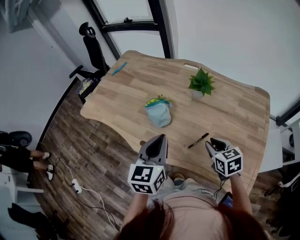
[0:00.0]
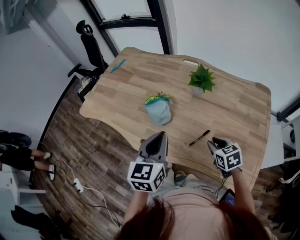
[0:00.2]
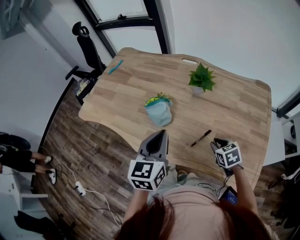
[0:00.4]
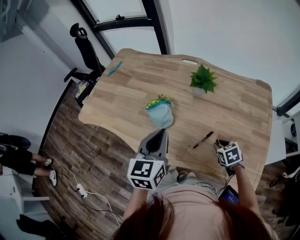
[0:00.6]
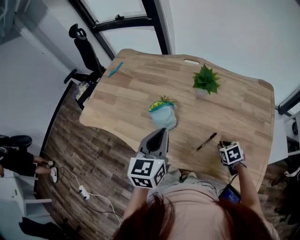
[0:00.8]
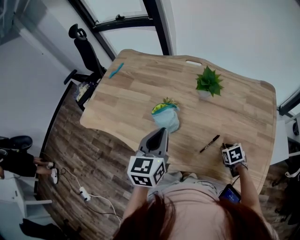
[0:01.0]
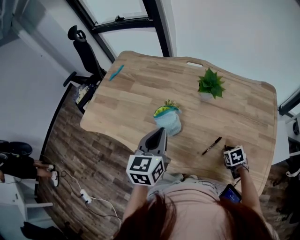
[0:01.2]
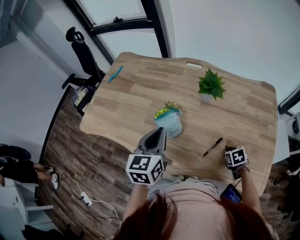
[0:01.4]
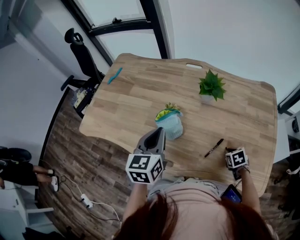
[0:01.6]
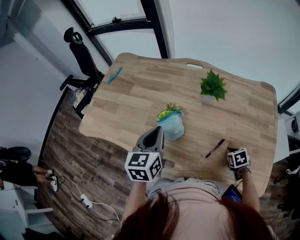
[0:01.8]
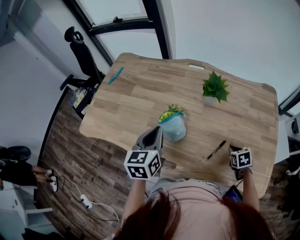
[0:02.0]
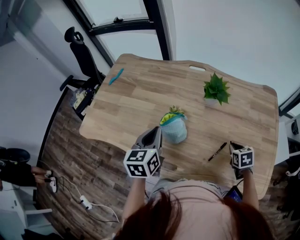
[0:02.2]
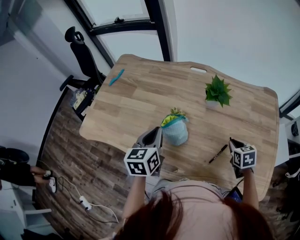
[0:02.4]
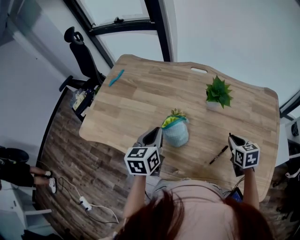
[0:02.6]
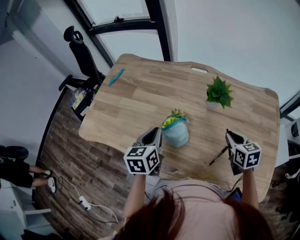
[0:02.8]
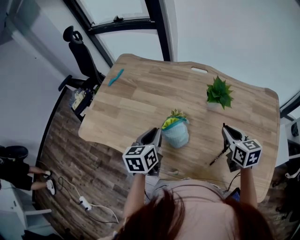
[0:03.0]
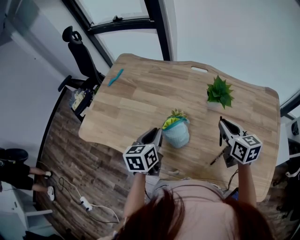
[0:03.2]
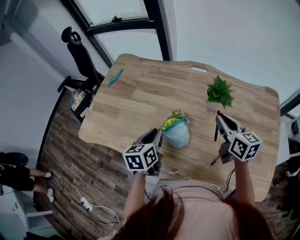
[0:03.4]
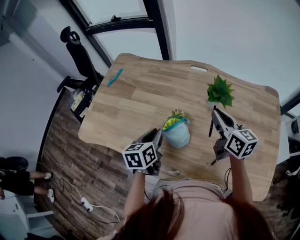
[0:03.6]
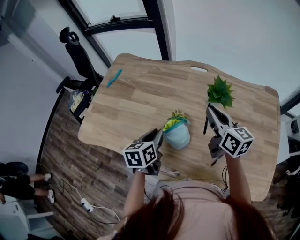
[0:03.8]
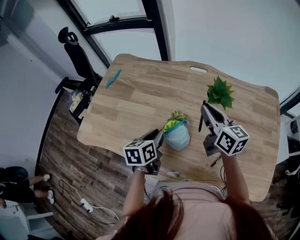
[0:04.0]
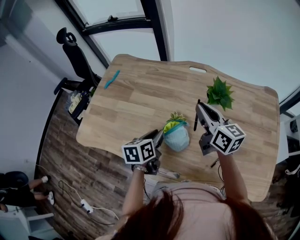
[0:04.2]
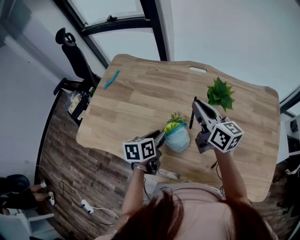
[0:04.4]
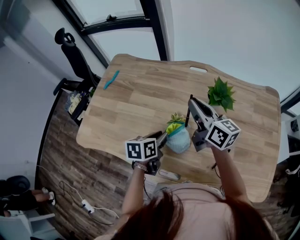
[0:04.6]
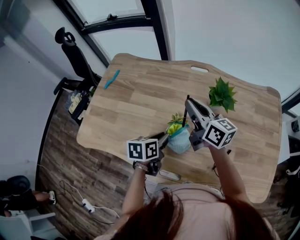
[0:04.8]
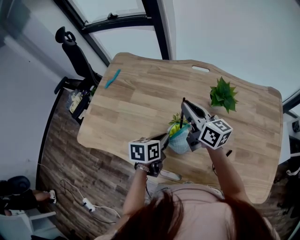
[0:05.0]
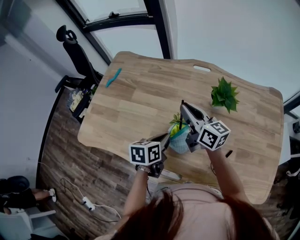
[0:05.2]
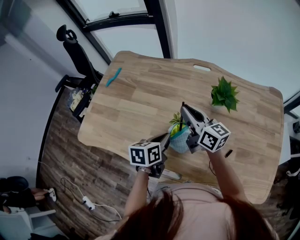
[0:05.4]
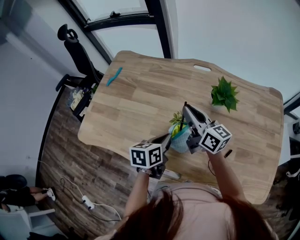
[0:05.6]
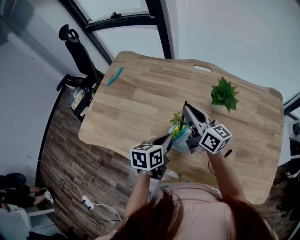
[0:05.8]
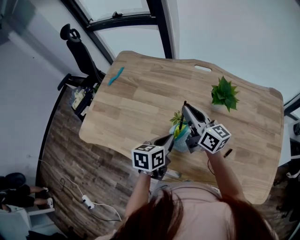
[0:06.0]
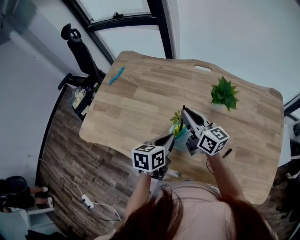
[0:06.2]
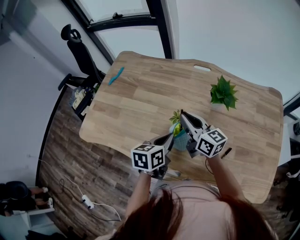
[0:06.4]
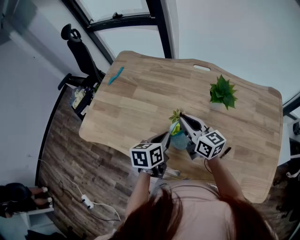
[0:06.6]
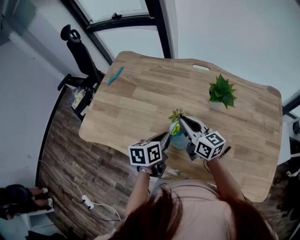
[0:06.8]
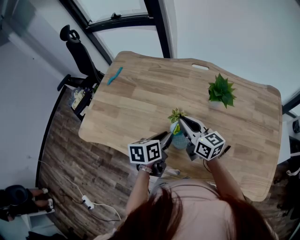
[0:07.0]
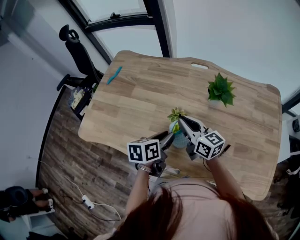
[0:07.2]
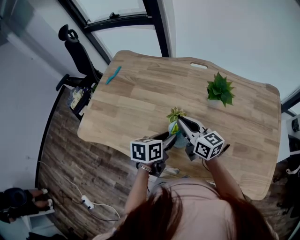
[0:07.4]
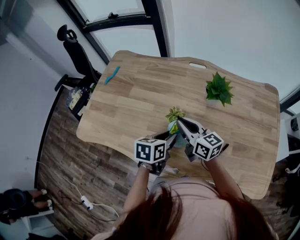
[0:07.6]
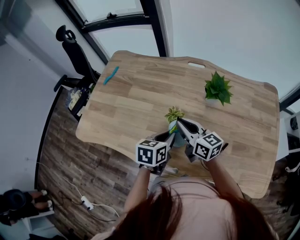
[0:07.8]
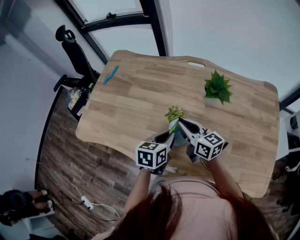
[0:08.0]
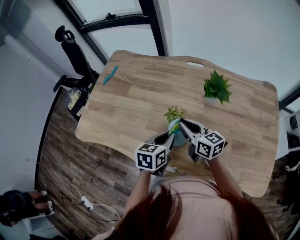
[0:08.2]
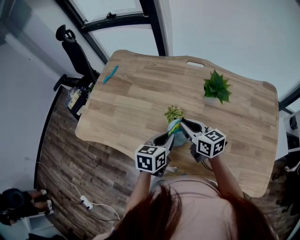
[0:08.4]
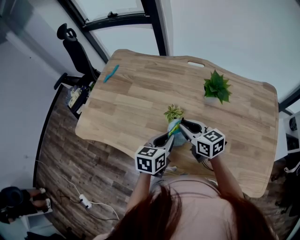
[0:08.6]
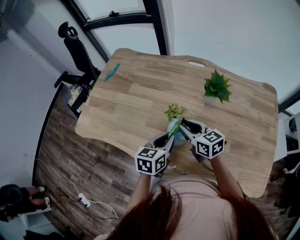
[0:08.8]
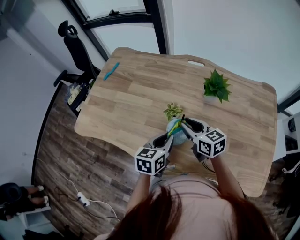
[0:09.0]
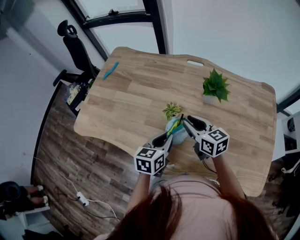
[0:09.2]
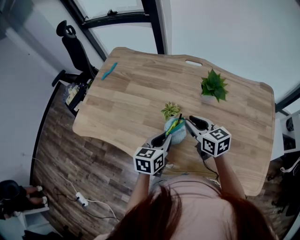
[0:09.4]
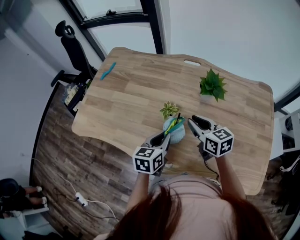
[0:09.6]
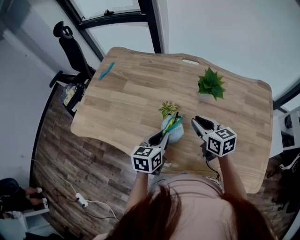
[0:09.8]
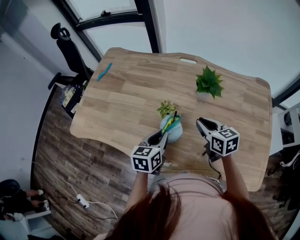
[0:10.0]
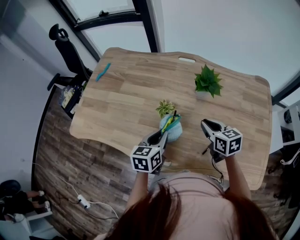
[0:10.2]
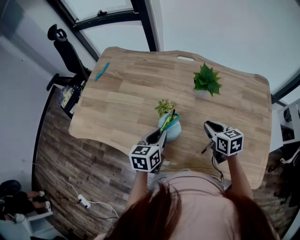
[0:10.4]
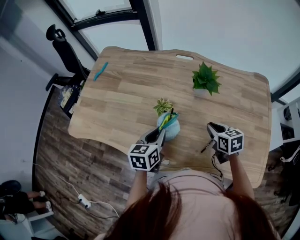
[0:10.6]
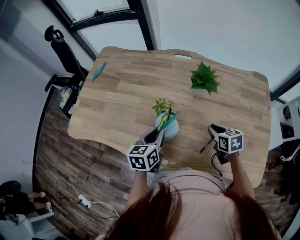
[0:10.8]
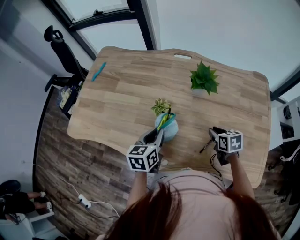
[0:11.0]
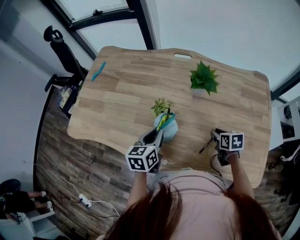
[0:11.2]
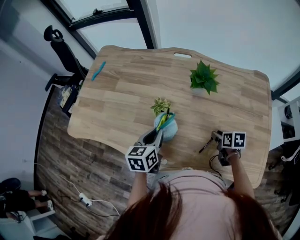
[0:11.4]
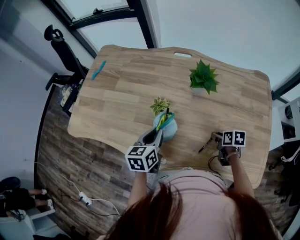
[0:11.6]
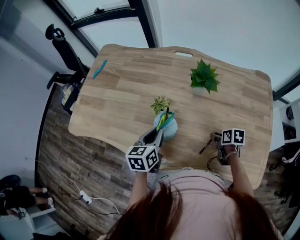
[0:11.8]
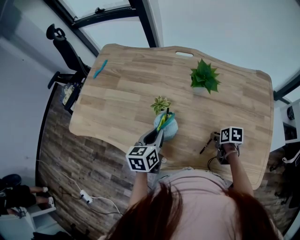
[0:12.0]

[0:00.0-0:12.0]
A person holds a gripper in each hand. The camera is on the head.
0:00.0 to 0:01.6: The right gripper travels downward by some 15 cm, and tips its fingers downward by approximately 30 degrees. Meanwhile the left gripper is displaced forward and to the left by about 15 cm.
0:01.6 to 0:03.0: The right gripper heads upward, forward and to the left, covering roughly 25 cm, and tips its fingers upward by some 40 degrees. The left gripper goes approximately 10 cm downward, to the left and forward.
0:03.0 to 0:04.4: The right gripper goes some 20 cm to the left, forward and upward, and turns by approximately 30 degrees; the left gripper shifts approximately 5 cm downward.
0:04.4 to 0:06.0: The right gripper moves approximately 5 cm, while the left gripper closes its fingers.
0:06.0 to 0:07.6: The right gripper goes roughly 10 cm backward and downward; the left gripper opens up.
0:07.6 to 0:09.0: The grippers make only small movements.
0:09.0 to 0:10.4: The right gripper moves to the right, some 15 cm, and turns by about 20 degrees.
0:10.4 to 0:12.0: The right gripper shifts roughly 15 cm downward, to the right and backward, swivels roughly 40 degrees, and opens.

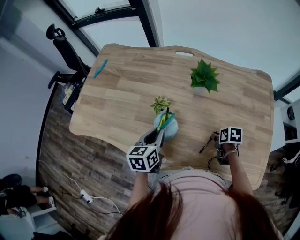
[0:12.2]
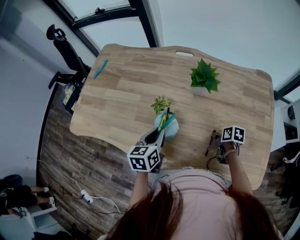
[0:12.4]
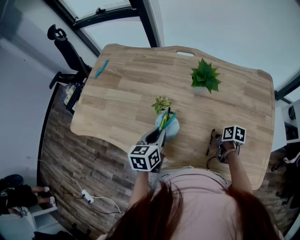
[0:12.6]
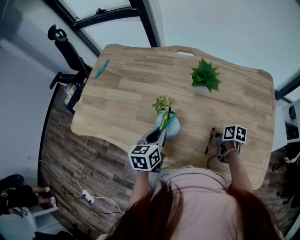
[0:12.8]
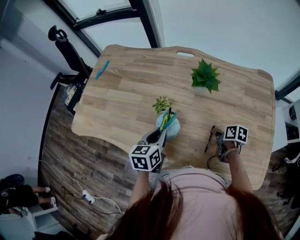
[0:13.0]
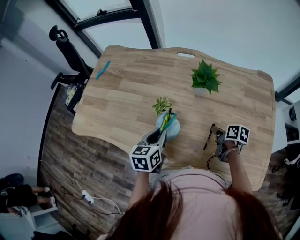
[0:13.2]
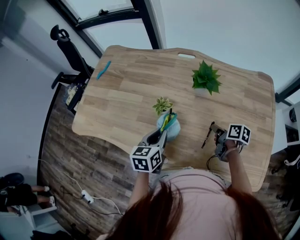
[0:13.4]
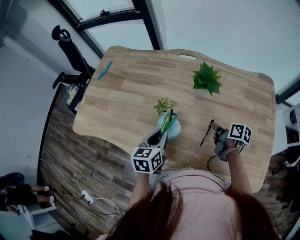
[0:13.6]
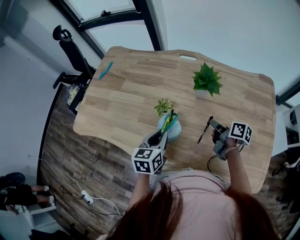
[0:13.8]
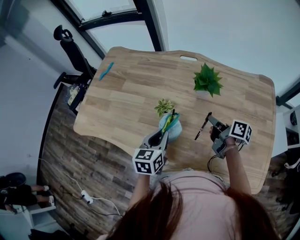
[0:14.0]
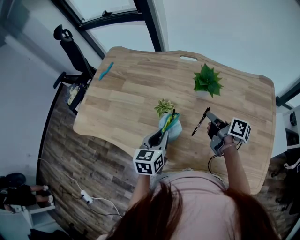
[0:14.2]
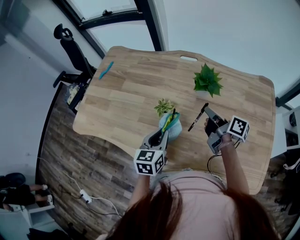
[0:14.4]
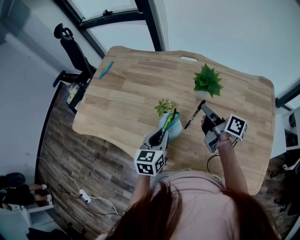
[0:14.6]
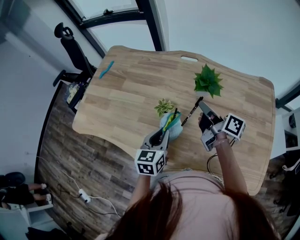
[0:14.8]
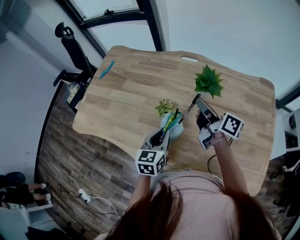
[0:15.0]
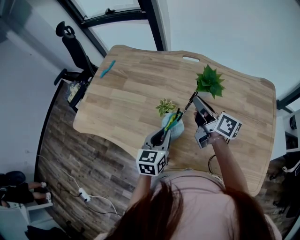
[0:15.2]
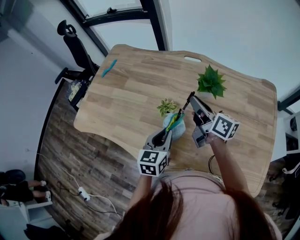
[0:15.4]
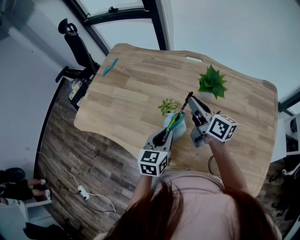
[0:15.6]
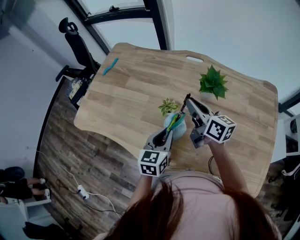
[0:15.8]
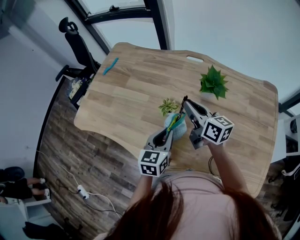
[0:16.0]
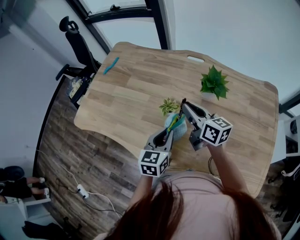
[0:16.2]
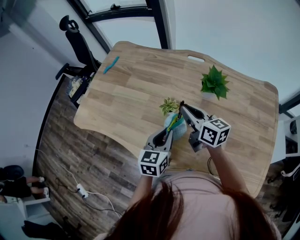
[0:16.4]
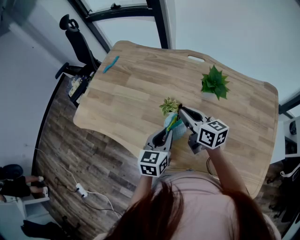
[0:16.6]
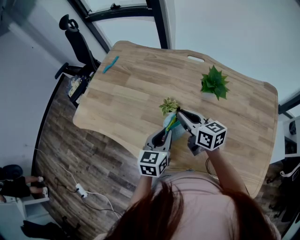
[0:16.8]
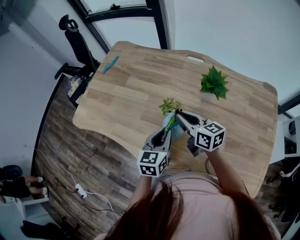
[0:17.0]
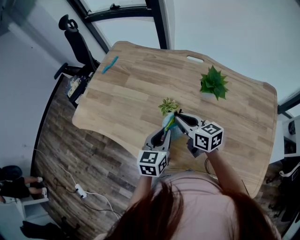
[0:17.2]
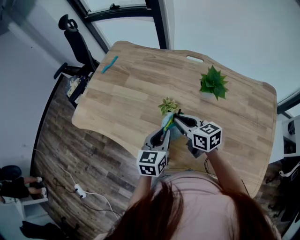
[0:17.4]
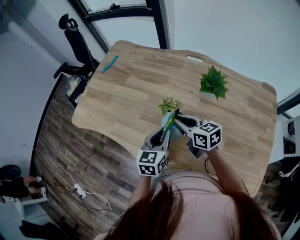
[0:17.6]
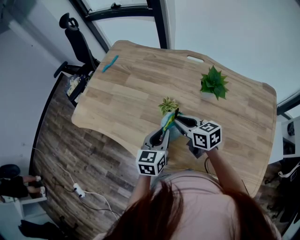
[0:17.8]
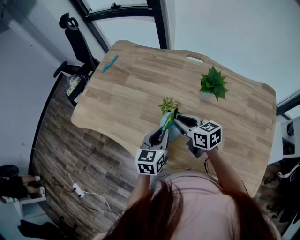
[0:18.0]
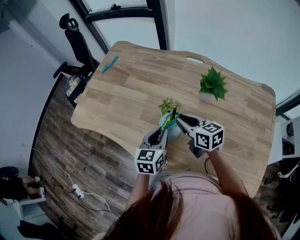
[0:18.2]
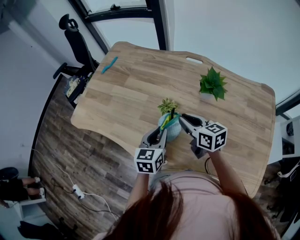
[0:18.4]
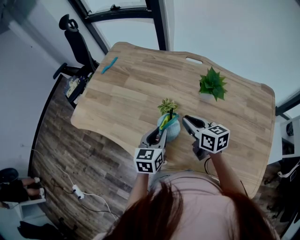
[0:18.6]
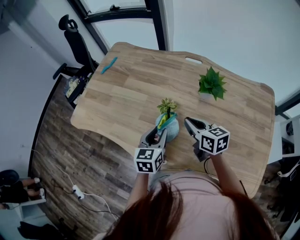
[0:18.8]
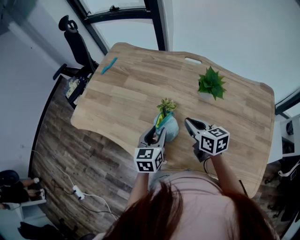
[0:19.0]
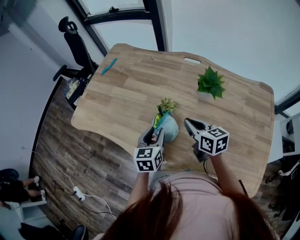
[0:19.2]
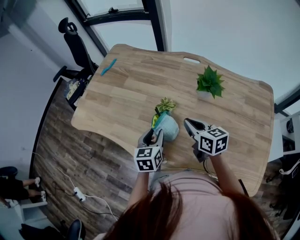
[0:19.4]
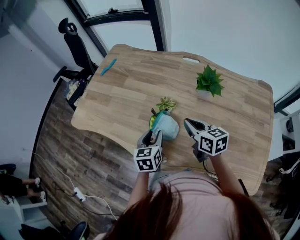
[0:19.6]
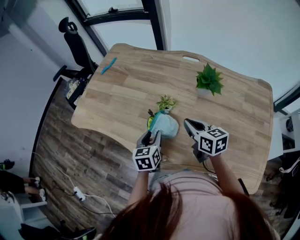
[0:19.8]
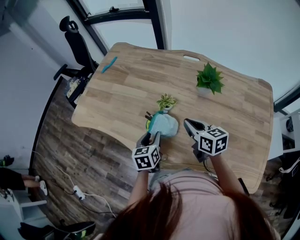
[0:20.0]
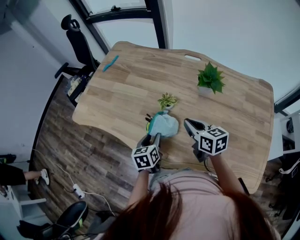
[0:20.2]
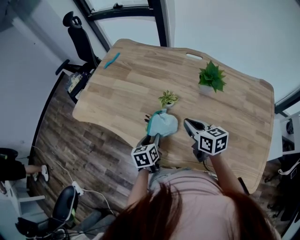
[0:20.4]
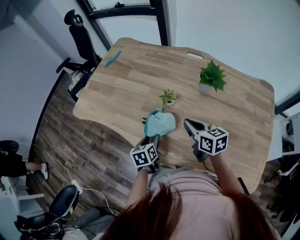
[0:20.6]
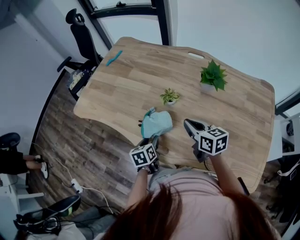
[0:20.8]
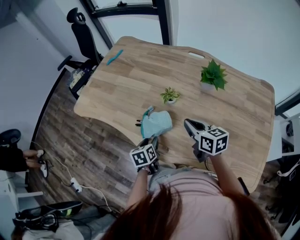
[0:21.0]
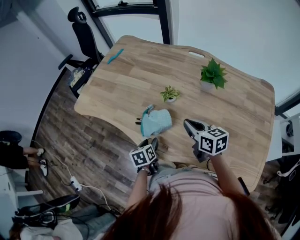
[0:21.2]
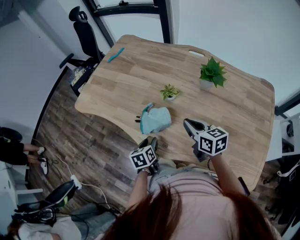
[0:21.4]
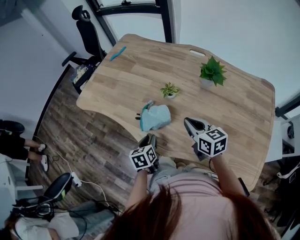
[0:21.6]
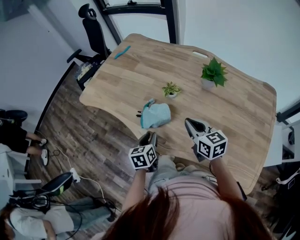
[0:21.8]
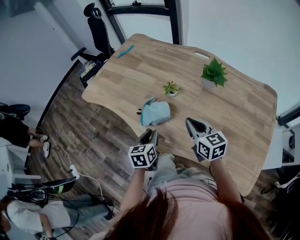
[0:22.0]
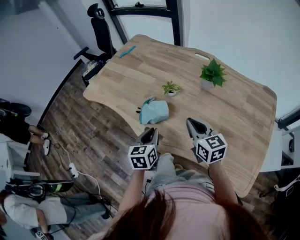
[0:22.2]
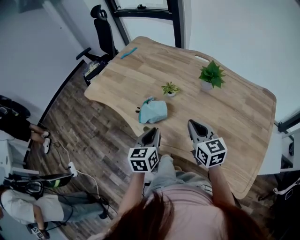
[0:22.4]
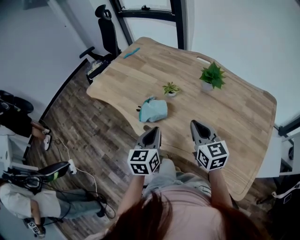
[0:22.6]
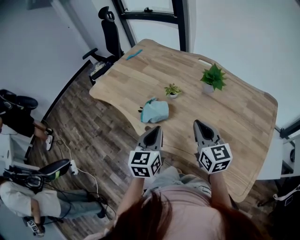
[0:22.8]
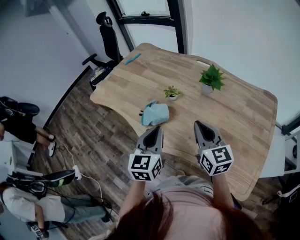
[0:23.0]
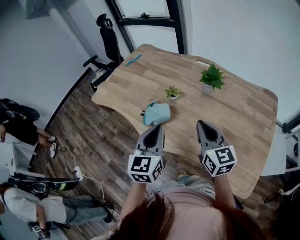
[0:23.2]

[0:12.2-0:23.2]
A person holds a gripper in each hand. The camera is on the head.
0:12.2 to 0:13.8: The right gripper goes about 10 cm upward and forward, and tilts its fingers approximately 40 degrees upward.
0:13.8 to 0:15.4: The right gripper shifts approximately 20 cm upward, to the left and forward, and rotates about 40 degrees.
0:15.4 to 0:17.0: The right gripper moves to the left and downward, some 10 cm, and swivels about 30 degrees.
0:17.0 to 0:18.4: The grippers make only small movements.
0:18.4 to 0:20.0: The left gripper heads downward, covering some 5 cm. The right gripper ends up approximately 5 cm from where it was.
0:20.0 to 0:21.6: Both grippers travel together backward, roughly 5 cm.
0:21.6 to 0:23.2: The right gripper is displaced upward, backward and to the right by roughly 15 cm, and changes its angle by approximately 20 degrees. Meanwhile the left gripper moves upward, approximately 25 cm, points its fingers roughly 30 degrees further upward, and closes.

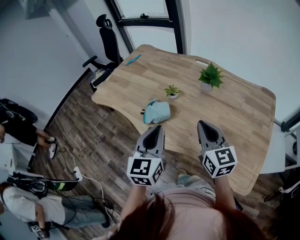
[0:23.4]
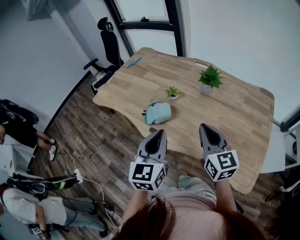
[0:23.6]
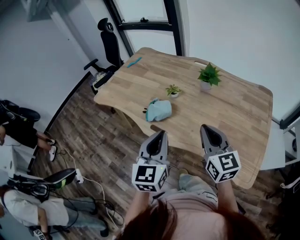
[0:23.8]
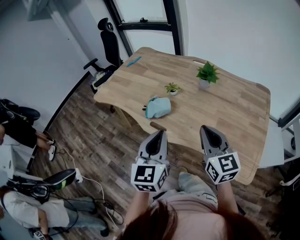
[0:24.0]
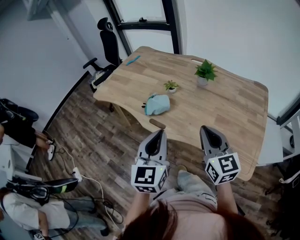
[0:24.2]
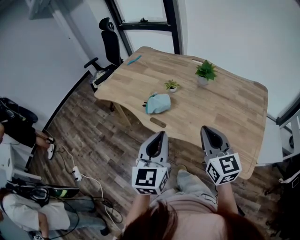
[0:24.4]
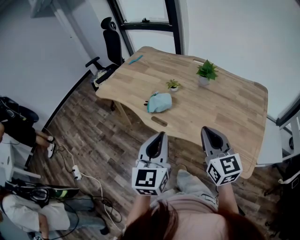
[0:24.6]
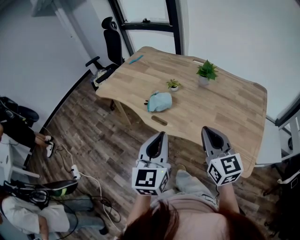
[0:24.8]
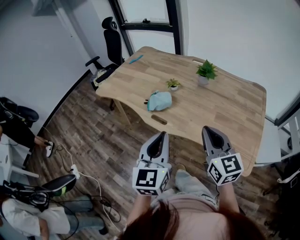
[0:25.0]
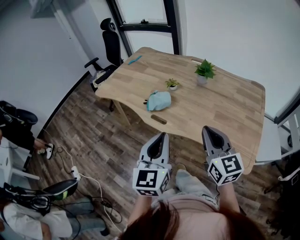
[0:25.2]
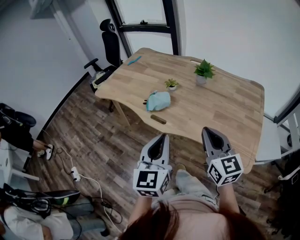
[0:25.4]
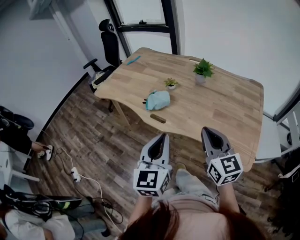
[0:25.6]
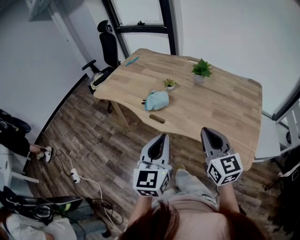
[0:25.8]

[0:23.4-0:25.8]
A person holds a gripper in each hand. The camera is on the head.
0:23.4 to 0:24.6: The two grippers go roughly 15 cm backward.
0:24.6 to 0:25.8: The grippers move only a little.
